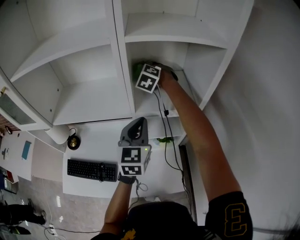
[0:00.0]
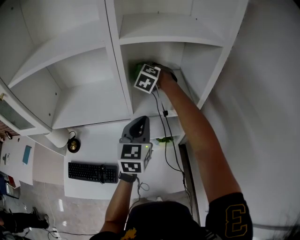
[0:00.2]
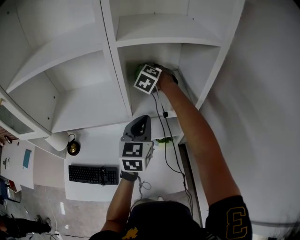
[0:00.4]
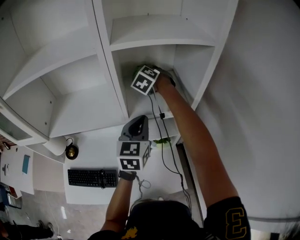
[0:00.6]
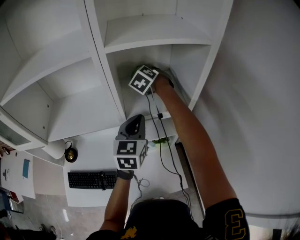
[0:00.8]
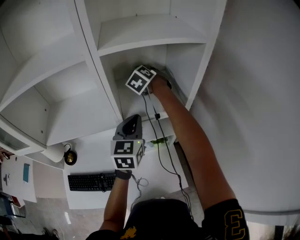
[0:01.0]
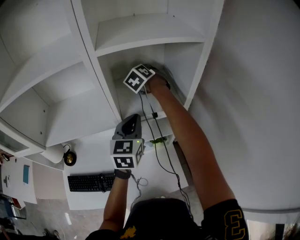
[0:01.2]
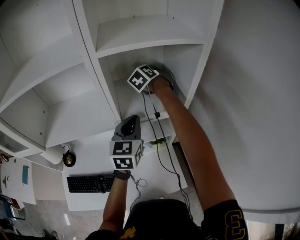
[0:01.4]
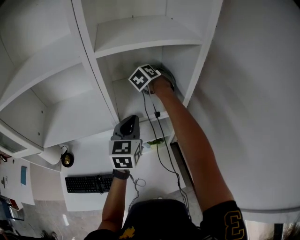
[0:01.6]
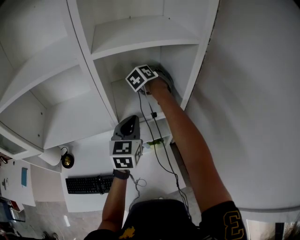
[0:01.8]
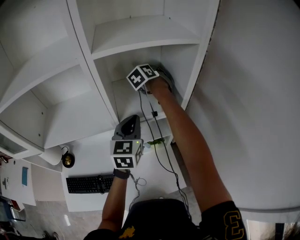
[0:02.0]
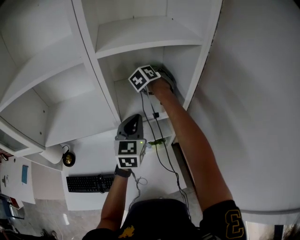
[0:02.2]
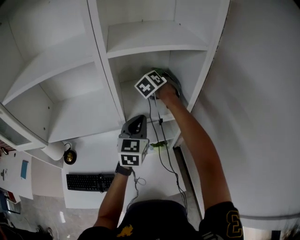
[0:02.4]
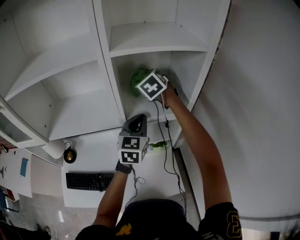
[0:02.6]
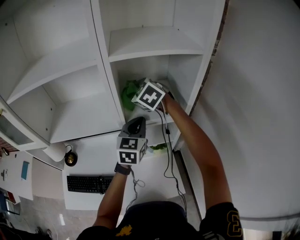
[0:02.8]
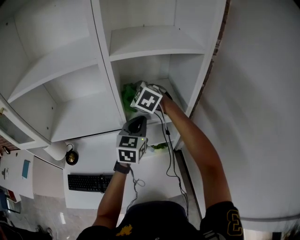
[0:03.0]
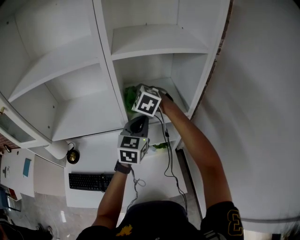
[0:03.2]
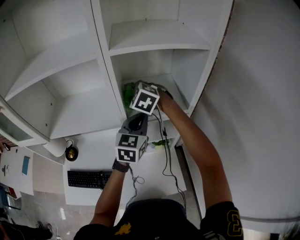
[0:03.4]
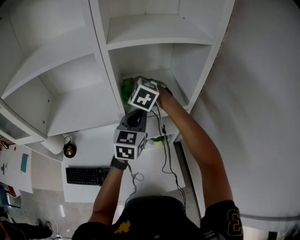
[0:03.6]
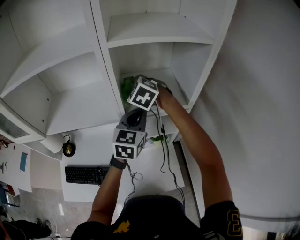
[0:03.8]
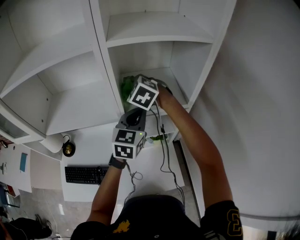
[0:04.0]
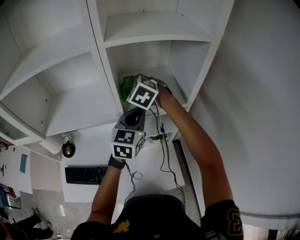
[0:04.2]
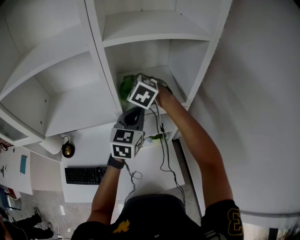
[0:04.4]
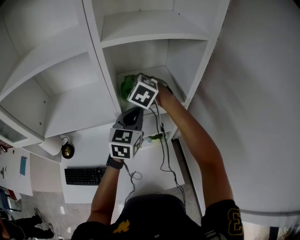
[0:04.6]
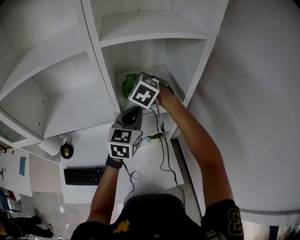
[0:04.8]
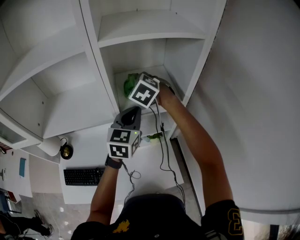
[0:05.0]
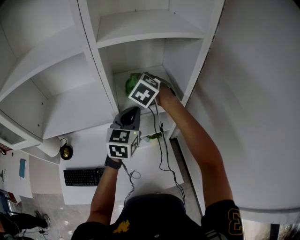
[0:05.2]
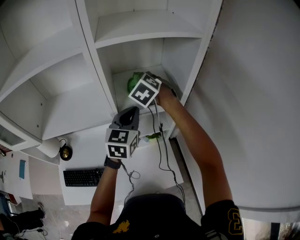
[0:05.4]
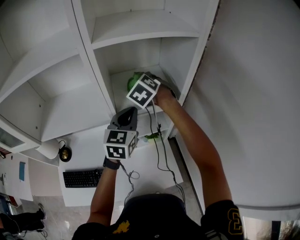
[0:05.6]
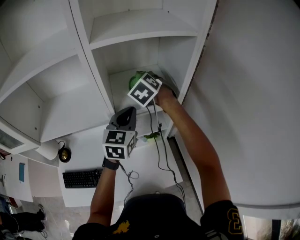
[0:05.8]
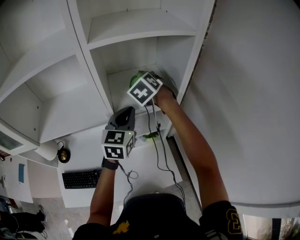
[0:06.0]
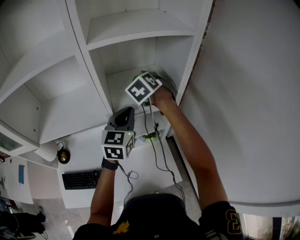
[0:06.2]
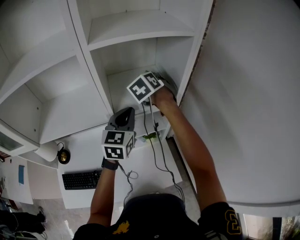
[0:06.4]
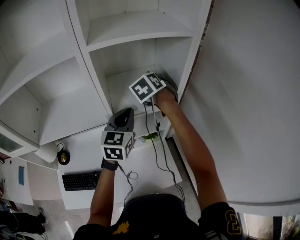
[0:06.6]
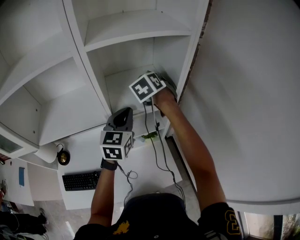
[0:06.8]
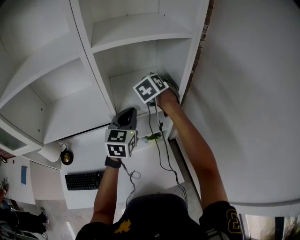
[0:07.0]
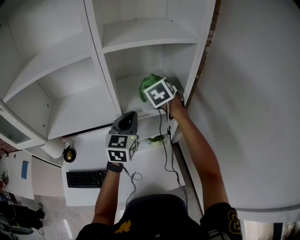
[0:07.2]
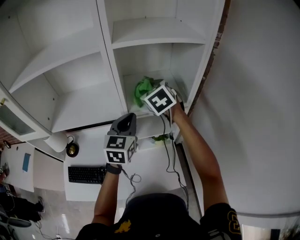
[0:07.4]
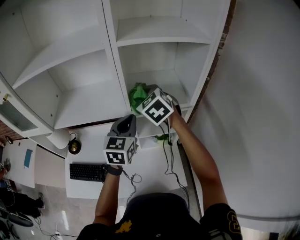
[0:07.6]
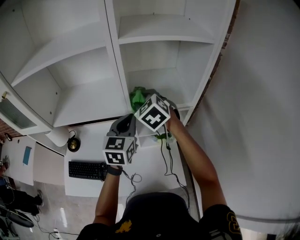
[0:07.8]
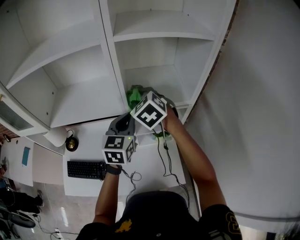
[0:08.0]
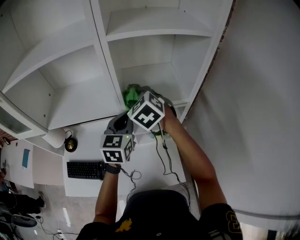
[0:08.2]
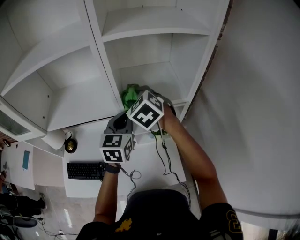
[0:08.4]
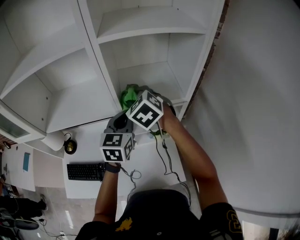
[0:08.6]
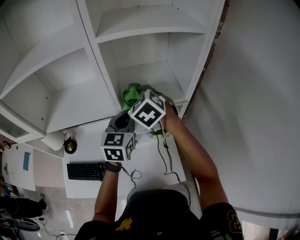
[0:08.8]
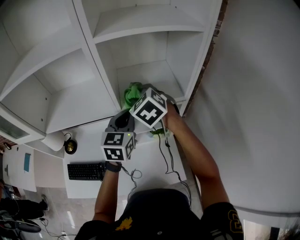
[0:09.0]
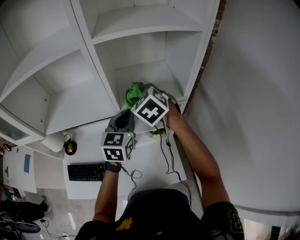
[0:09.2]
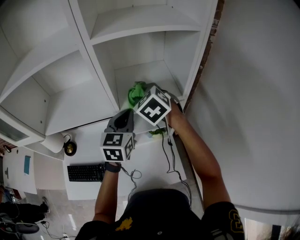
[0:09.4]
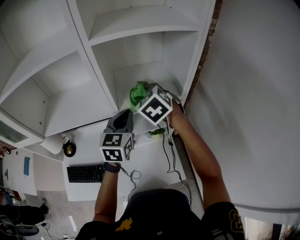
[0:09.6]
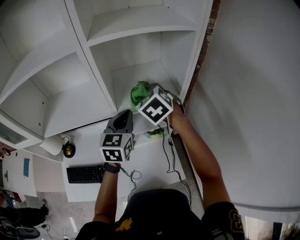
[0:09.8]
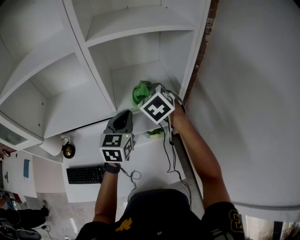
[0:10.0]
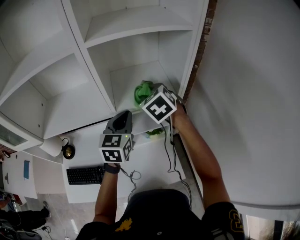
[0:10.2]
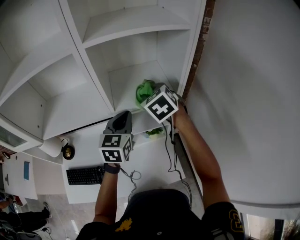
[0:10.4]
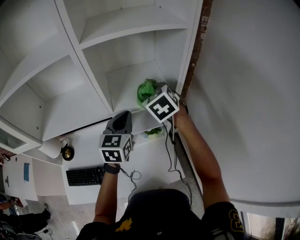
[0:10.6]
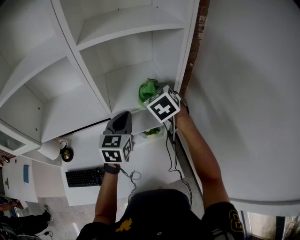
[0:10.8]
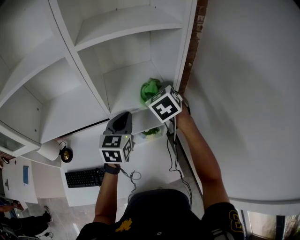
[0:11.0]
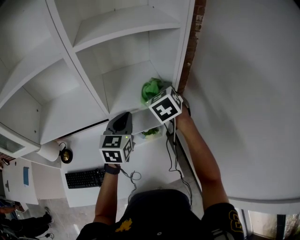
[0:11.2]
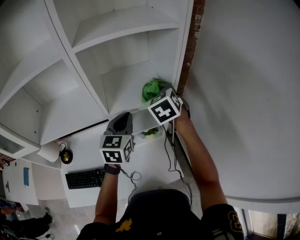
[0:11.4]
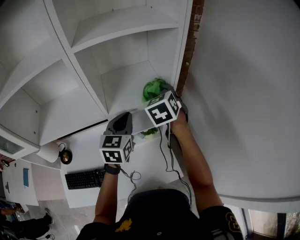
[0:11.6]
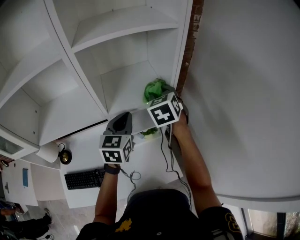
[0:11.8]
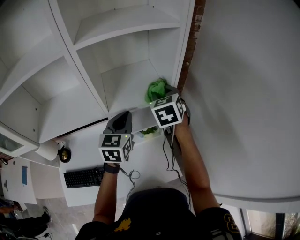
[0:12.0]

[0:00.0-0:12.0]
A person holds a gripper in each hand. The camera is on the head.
0:00.0 to 0:01.6: The left gripper moves approximately 5 cm. The right gripper is displaced to the right by about 15 cm, and changes its angle by roughly 40 degrees.
0:01.6 to 0:03.0: The right gripper shifts by about 20 cm, and changes its angle by some 40 degrees.
0:03.0 to 0:04.4: The grippers move only a little.
0:04.4 to 0:06.0: The right gripper heads to the right, covering approximately 10 cm, and turns by some 30 degrees.
0:06.0 to 0:07.6: The left gripper is displaced to the left and backward by about 5 cm. Meanwhile the right gripper moves backward and to the left, some 15 cm, and turns by some 20 degrees.
0:07.6 to 0:09.0: The grippers stay close to where they were, moving slightly.
0:09.0 to 0:10.4: The right gripper moves to the right, about 10 cm.
0:10.4 to 0:12.0: The right gripper travels to the right by approximately 10 cm, and turns by roughly 20 degrees.

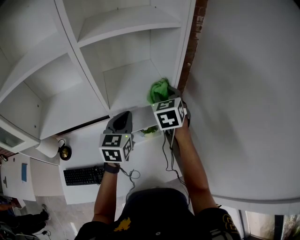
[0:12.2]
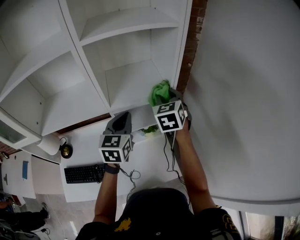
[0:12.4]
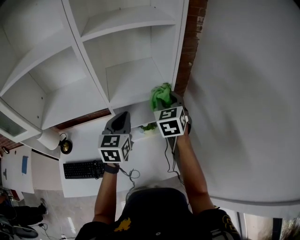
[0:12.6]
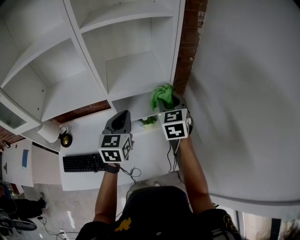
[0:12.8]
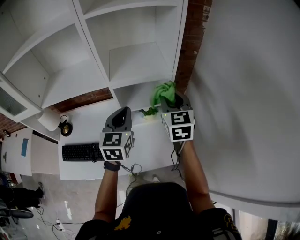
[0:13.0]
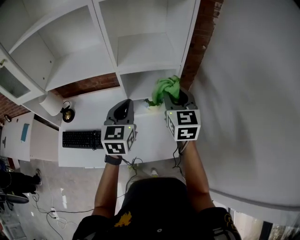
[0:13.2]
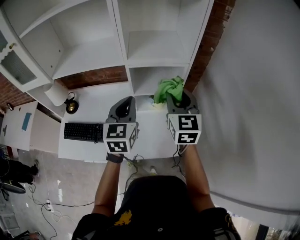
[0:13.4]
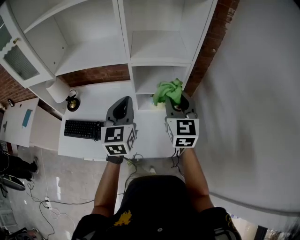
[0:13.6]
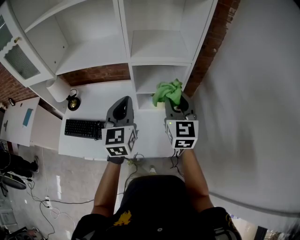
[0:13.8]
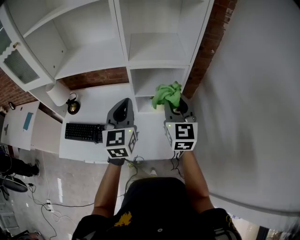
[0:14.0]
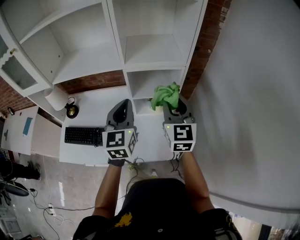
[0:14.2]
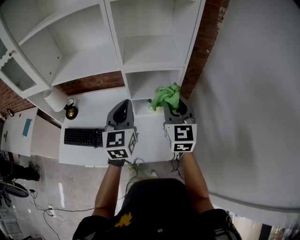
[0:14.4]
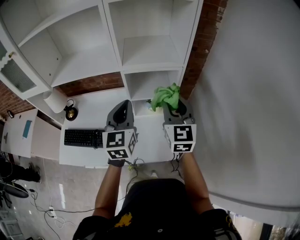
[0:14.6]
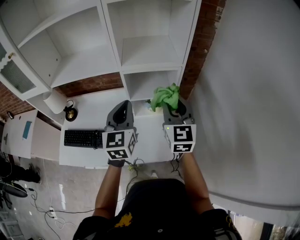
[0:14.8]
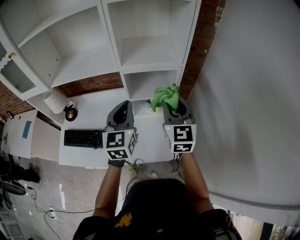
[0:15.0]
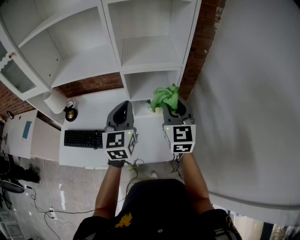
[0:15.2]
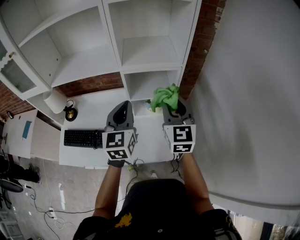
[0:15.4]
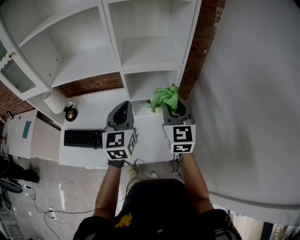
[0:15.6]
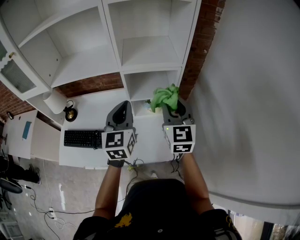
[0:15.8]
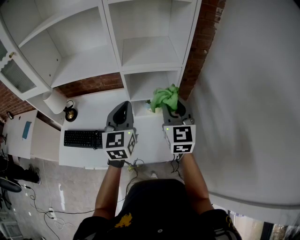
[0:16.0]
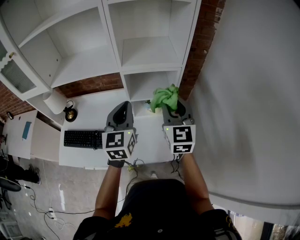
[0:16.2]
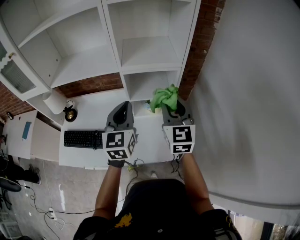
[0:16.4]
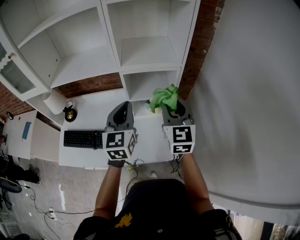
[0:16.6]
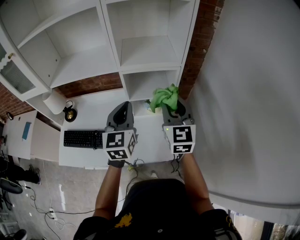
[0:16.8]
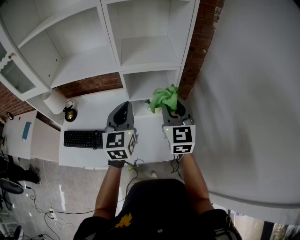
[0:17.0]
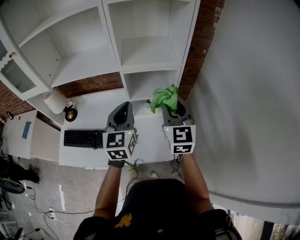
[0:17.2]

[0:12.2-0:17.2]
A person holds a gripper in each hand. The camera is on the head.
0:12.2 to 0:13.8: Both grippers travel together backward, approximately 20 cm. The left gripper rotates approximately 20 degrees. Meanwhile the right gripper changes its angle by some 30 degrees.
0:13.8 to 0:15.6: The grippers stay close to where they were, moving slightly.
0:15.6 to 0:17.2: Neither gripper changes place.

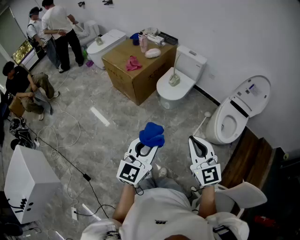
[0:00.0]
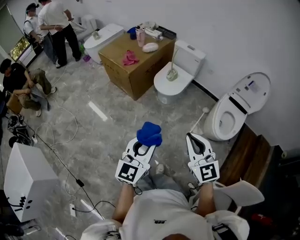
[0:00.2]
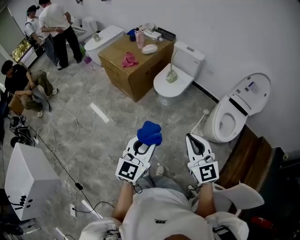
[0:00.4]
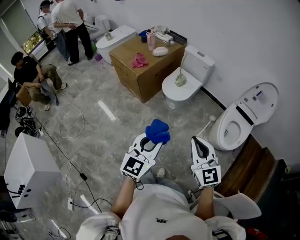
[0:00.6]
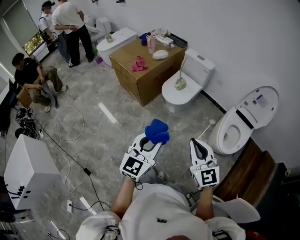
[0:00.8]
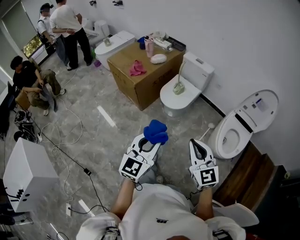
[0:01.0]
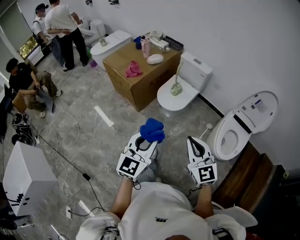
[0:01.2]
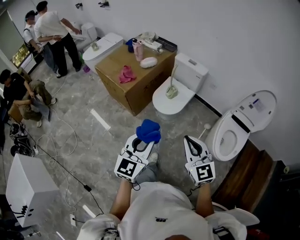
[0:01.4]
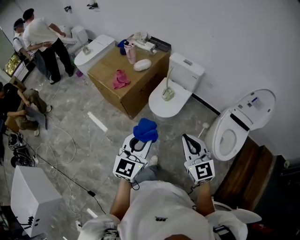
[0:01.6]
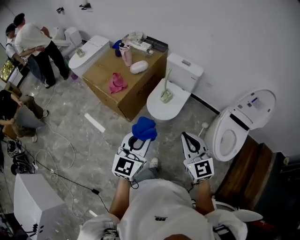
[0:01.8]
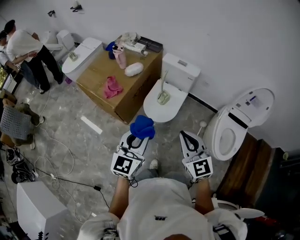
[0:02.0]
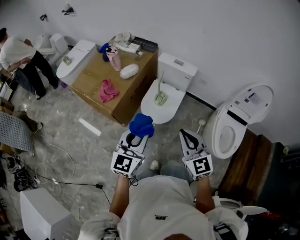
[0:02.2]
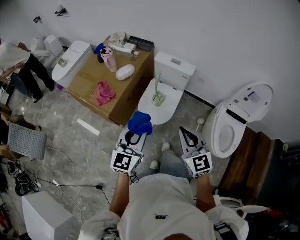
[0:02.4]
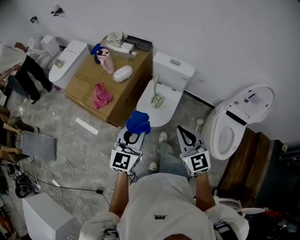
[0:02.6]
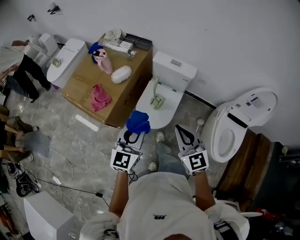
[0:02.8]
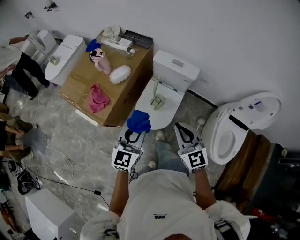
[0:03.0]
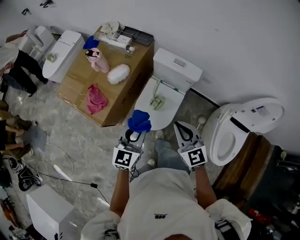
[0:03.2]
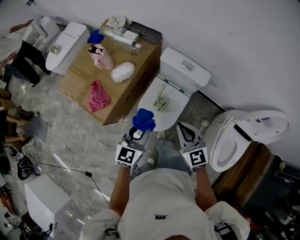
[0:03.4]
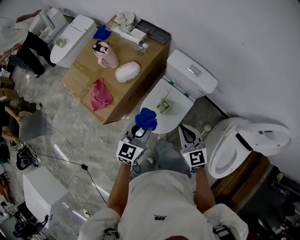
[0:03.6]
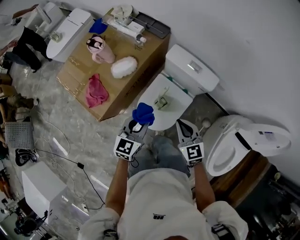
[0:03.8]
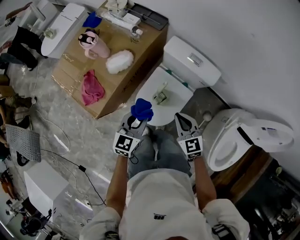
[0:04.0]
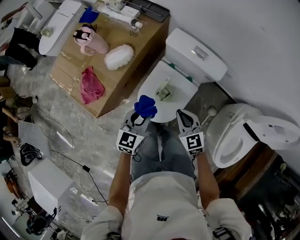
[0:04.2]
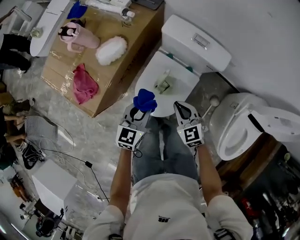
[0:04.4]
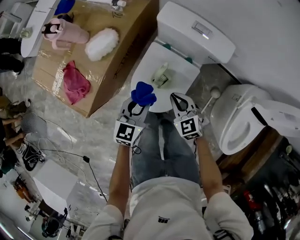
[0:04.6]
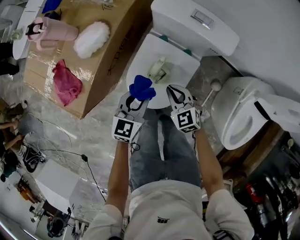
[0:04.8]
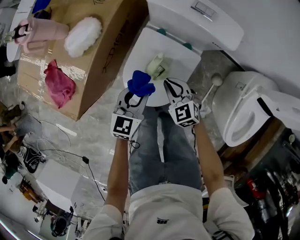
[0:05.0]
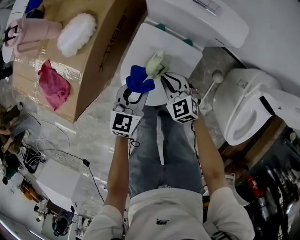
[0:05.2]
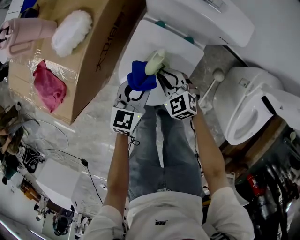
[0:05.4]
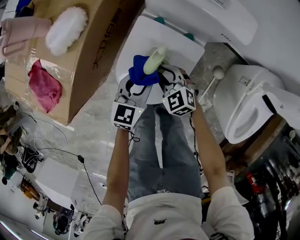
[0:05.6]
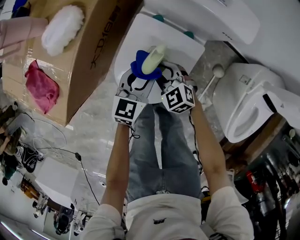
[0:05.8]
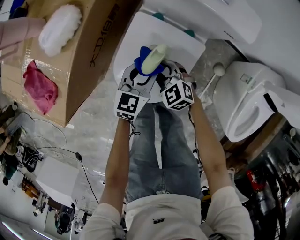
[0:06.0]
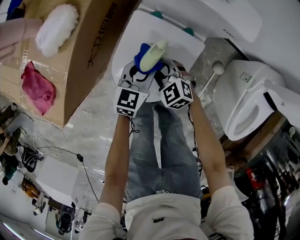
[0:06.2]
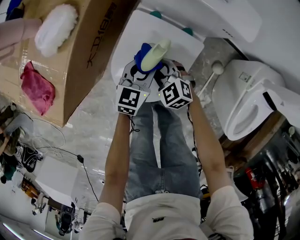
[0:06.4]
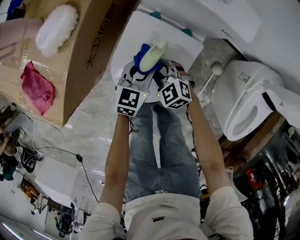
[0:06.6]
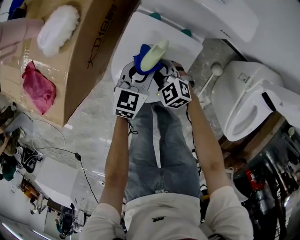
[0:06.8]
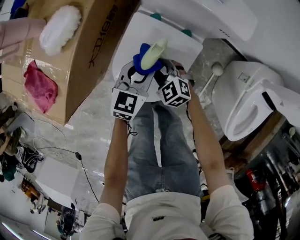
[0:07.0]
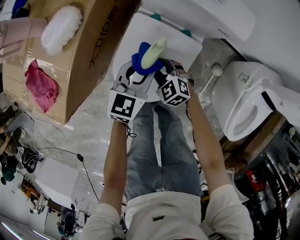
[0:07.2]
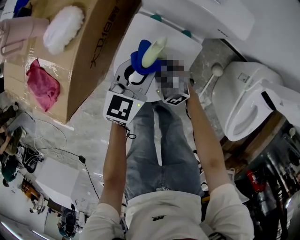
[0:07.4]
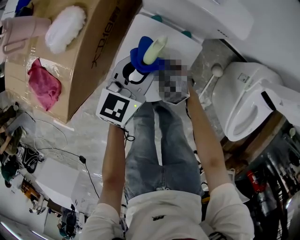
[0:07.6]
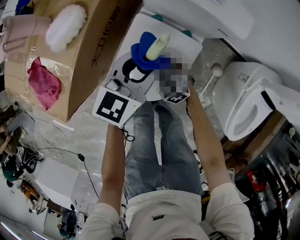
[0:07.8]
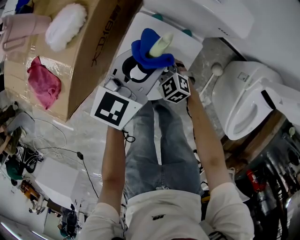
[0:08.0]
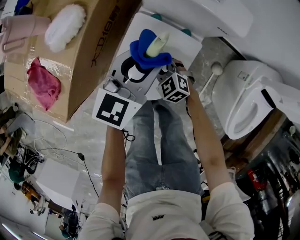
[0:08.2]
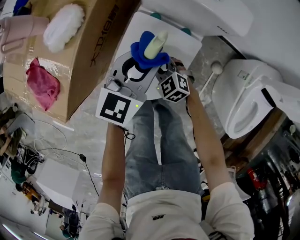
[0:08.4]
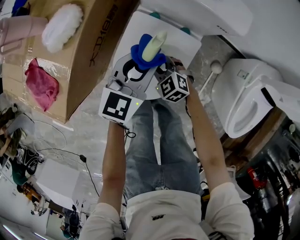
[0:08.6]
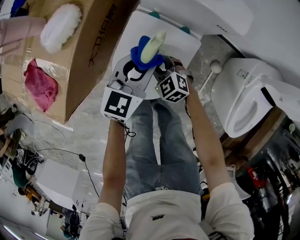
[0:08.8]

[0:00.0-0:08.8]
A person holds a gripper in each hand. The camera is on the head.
0:00.0 to 0:01.4: The two grippers go roughly 20 cm forward.
0:01.4 to 0:03.0: Both grippers travel together forward, roughly 40 cm.
0:03.0 to 0:04.4: The two grippers go about 30 cm downward and forward. The right gripper changes its angle by approximately 20 degrees.
0:04.4 to 0:05.8: The two grippers go roughly 20 cm downward. The right gripper opens its fingers.
0:05.8 to 0:07.4: The left gripper moves upward, about 10 cm.
